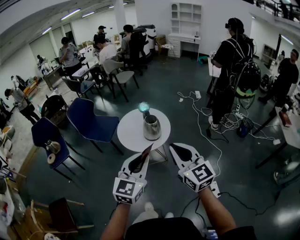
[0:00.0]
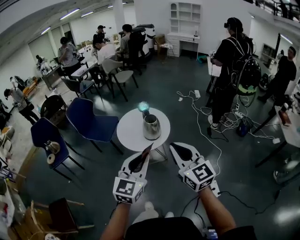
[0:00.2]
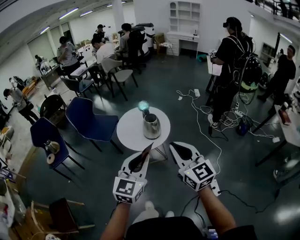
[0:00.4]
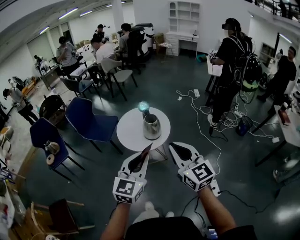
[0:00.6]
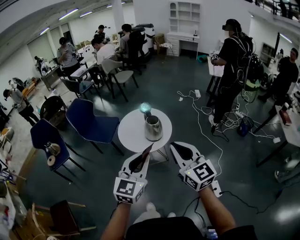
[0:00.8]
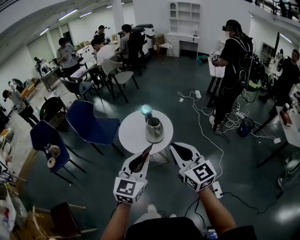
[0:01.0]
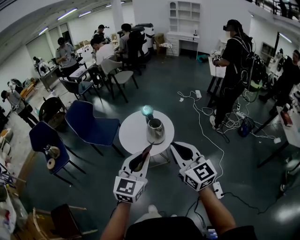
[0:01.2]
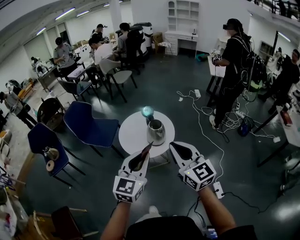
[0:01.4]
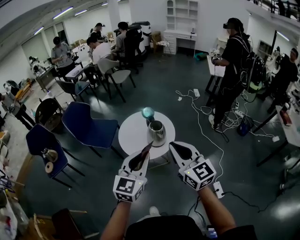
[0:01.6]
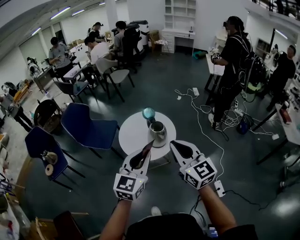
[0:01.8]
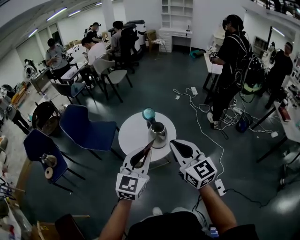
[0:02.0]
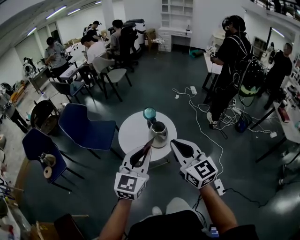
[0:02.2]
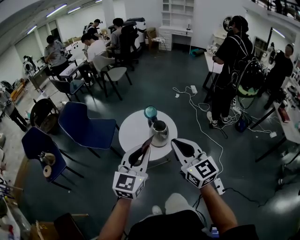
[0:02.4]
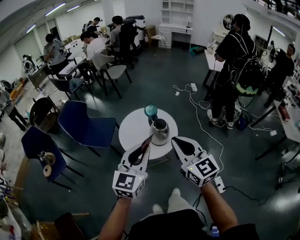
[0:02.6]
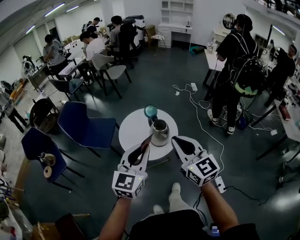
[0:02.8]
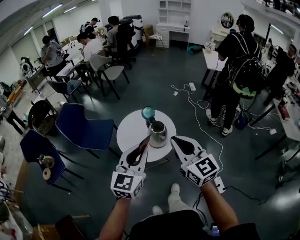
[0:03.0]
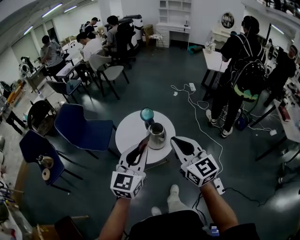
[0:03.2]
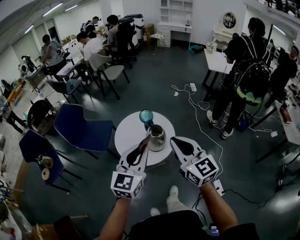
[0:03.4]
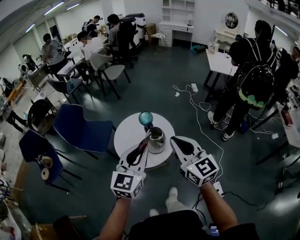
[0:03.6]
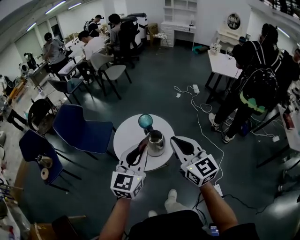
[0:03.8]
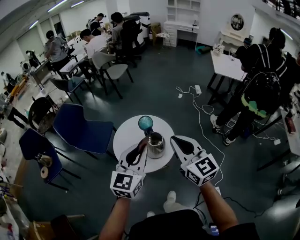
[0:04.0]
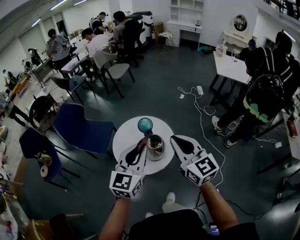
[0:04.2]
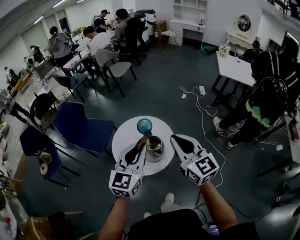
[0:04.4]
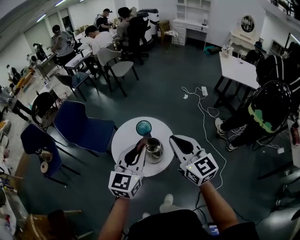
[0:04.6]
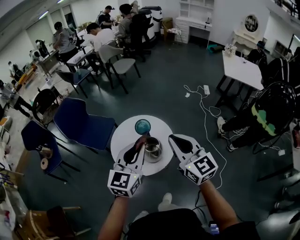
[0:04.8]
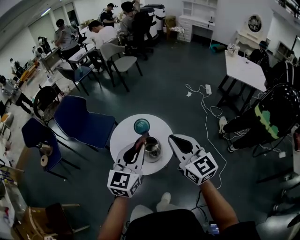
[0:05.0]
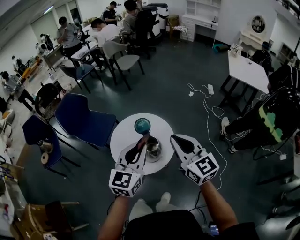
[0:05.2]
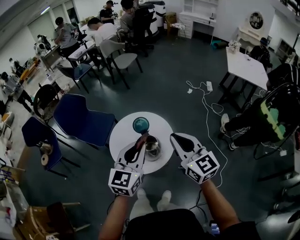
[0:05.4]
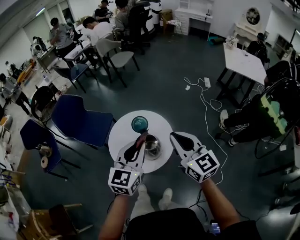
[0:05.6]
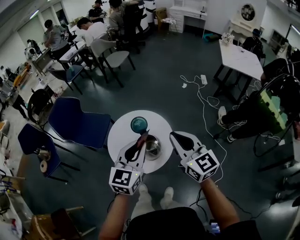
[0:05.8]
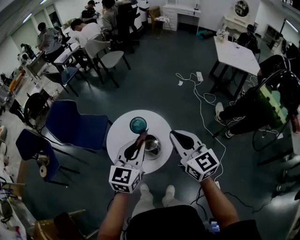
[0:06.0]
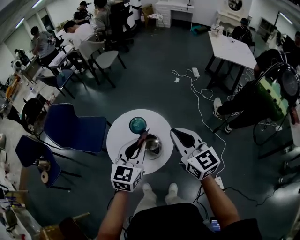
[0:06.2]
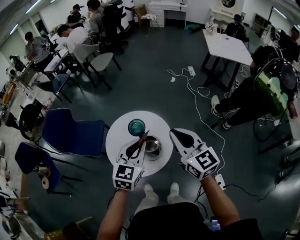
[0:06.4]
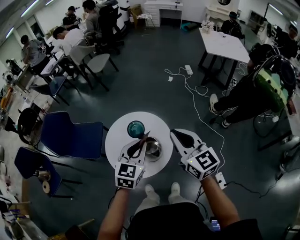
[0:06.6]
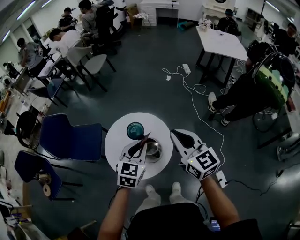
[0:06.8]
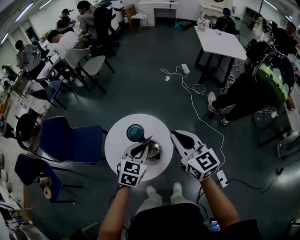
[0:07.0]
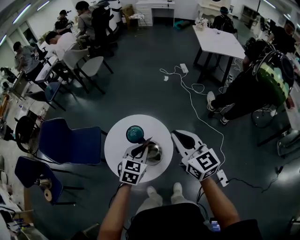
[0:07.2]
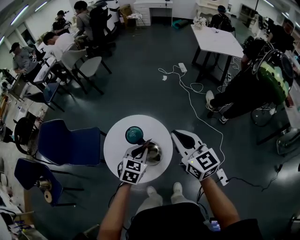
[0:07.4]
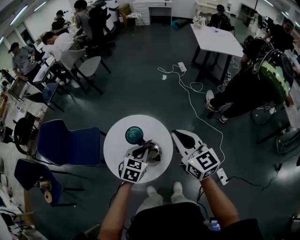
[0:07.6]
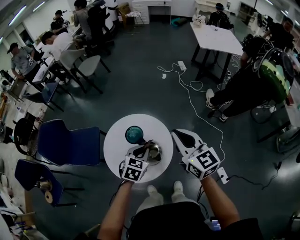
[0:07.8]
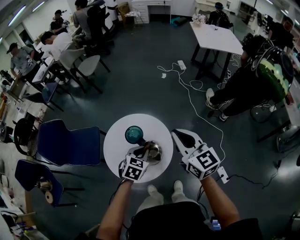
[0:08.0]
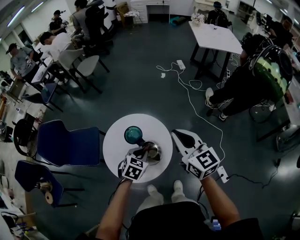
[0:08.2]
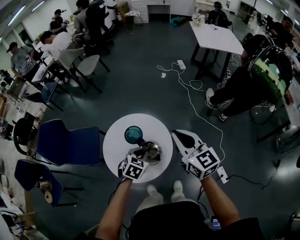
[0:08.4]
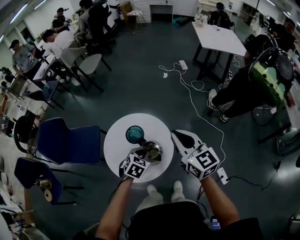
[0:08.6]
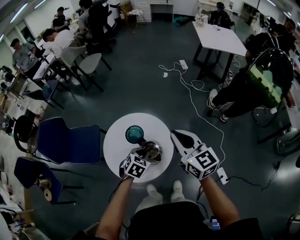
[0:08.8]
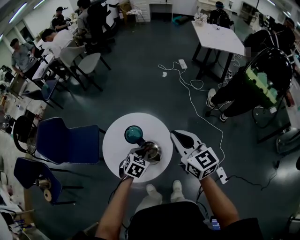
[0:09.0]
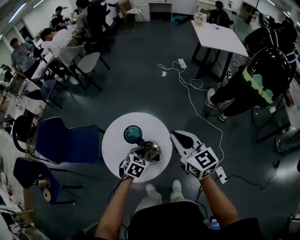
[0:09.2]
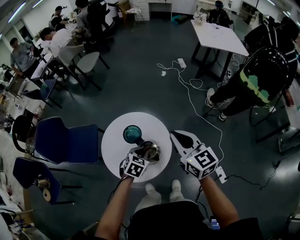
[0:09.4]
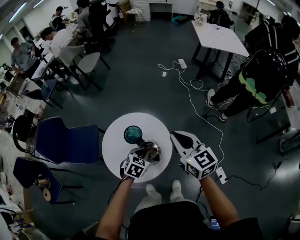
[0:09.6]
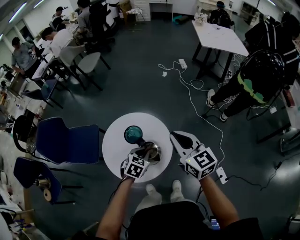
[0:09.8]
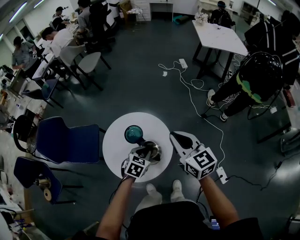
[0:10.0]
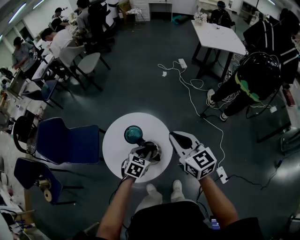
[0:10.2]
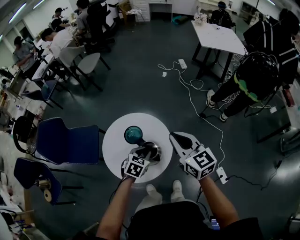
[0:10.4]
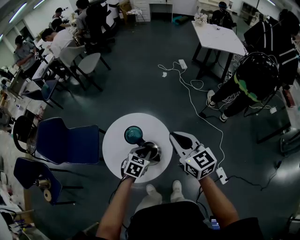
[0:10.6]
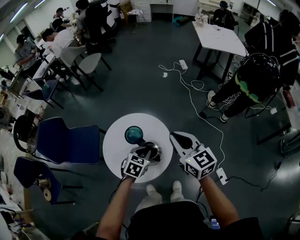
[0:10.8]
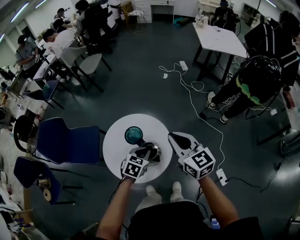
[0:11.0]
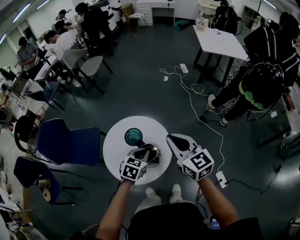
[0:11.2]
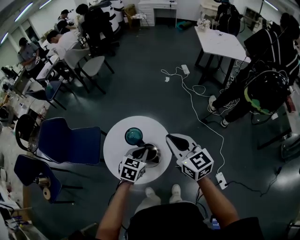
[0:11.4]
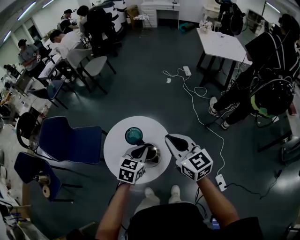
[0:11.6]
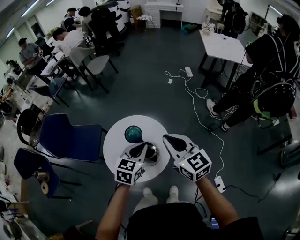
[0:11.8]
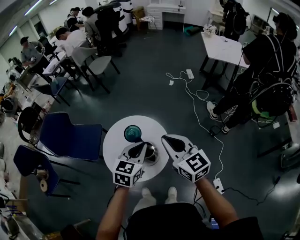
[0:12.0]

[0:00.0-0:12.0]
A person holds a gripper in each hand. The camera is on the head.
0:00.0 to 0:01.6: The two grippers go some 15 cm forward and to the left.
0:01.6 to 0:03.0: The two grippers go roughly 10 cm forward.
0:03.0 to 0:04.4: Both grippers travel together forward and to the right, about 20 cm.
0:04.4 to 0:06.0: The left gripper is displaced forward and downward by roughly 10 cm, while the right gripper is displaced forward by approximately 10 cm.
0:06.0 to 0:07.6: The left gripper moves downward and forward, some 20 cm, and turns by roughly 30 degrees. Meanwhile the right gripper goes some 5 cm forward.
0:07.6 to 0:09.0: The left gripper moves downward, about 5 cm.
0:09.0 to 0:10.4: There are only small adjustments of the grippers.
0:10.4 to 0:12.0: The right gripper goes some 5 cm upward; the left gripper travels upward by approximately 20 cm, and swivels about 30 degrees.

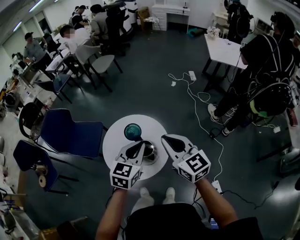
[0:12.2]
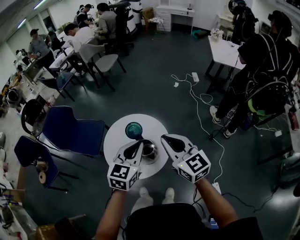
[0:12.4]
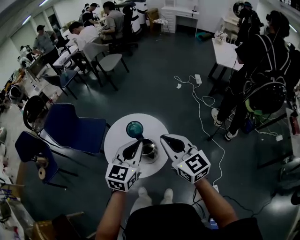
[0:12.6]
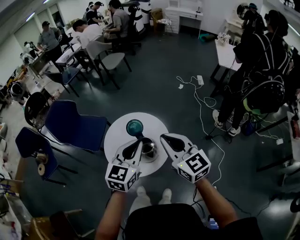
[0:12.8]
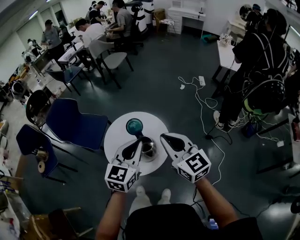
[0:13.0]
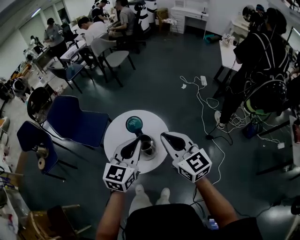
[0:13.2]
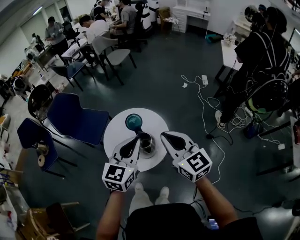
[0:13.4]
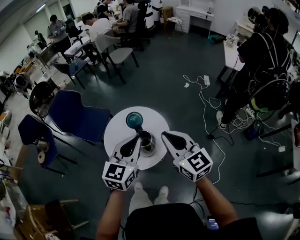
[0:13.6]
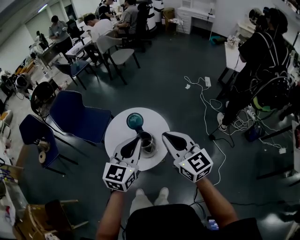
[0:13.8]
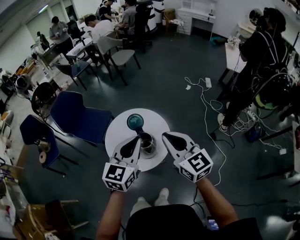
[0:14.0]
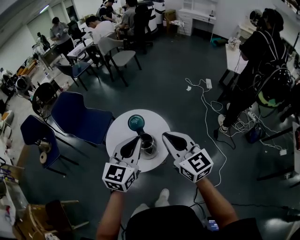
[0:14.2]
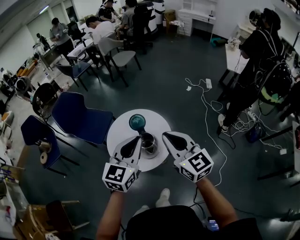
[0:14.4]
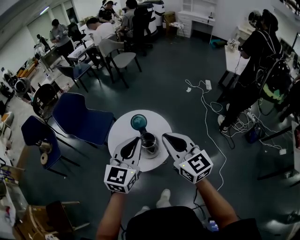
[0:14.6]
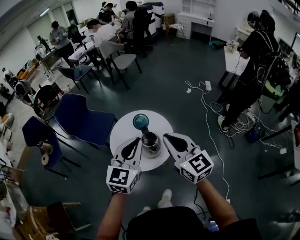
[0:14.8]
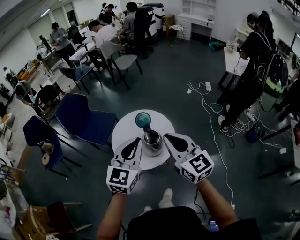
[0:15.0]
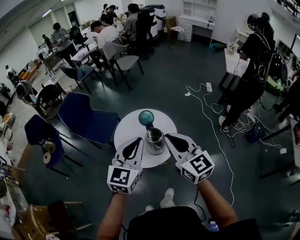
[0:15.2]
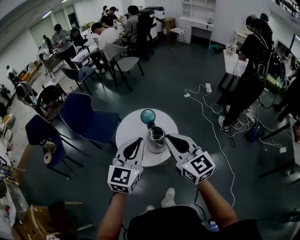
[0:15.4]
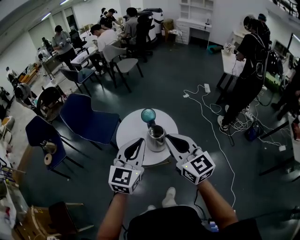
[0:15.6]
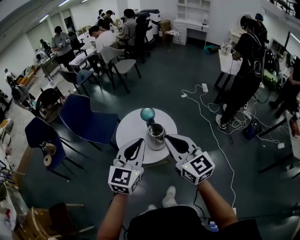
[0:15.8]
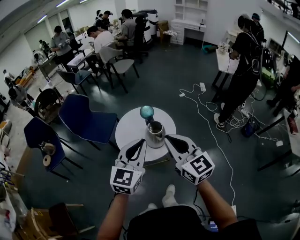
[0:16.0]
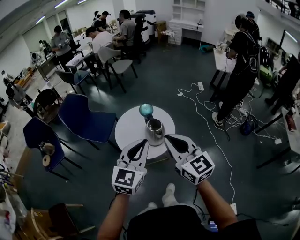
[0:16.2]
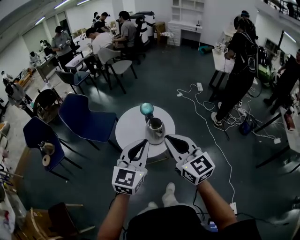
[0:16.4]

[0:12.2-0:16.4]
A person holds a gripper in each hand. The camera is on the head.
0:12.2 to 0:13.6: The right gripper shifts by roughly 5 cm, while the left gripper goes roughly 5 cm backward.
0:13.6 to 0:15.0: The two grippers go some 5 cm backward.
0:15.0 to 0:16.4: The left gripper goes some 15 cm backward, while the right gripper moves backward and to the left, about 20 cm.

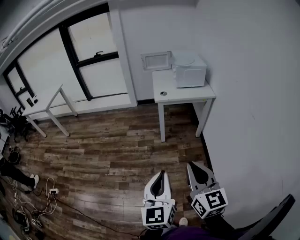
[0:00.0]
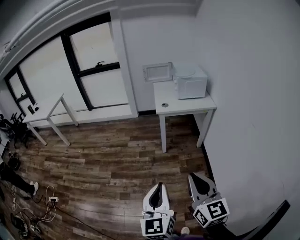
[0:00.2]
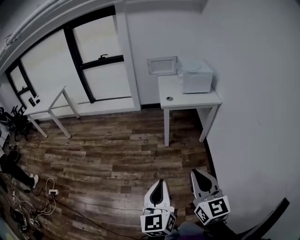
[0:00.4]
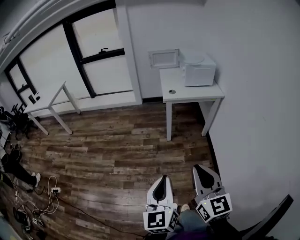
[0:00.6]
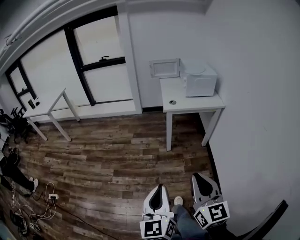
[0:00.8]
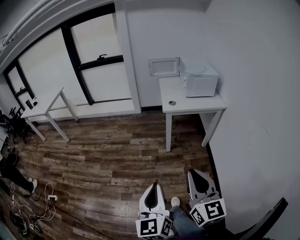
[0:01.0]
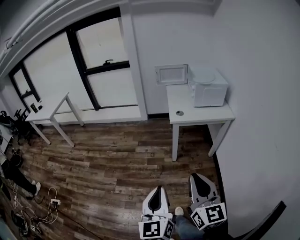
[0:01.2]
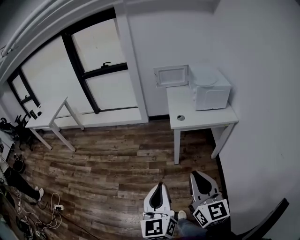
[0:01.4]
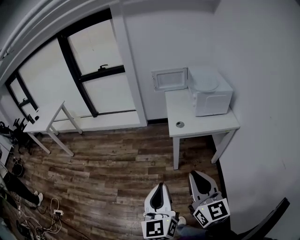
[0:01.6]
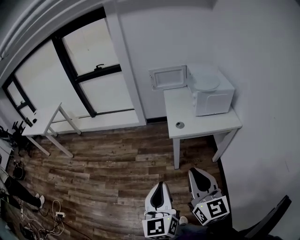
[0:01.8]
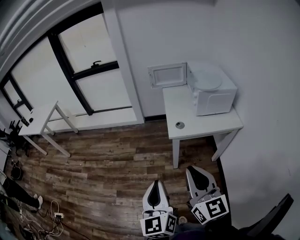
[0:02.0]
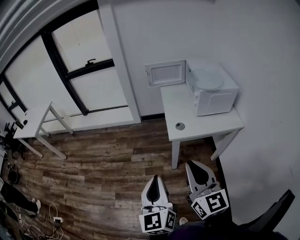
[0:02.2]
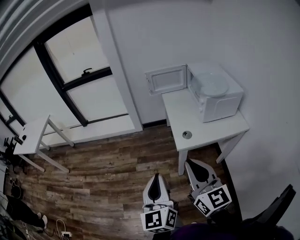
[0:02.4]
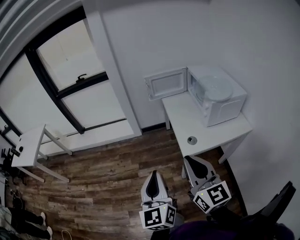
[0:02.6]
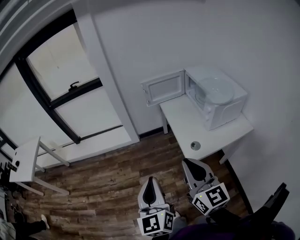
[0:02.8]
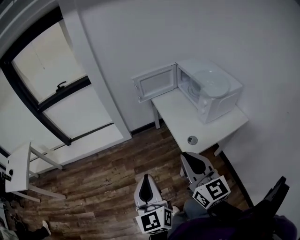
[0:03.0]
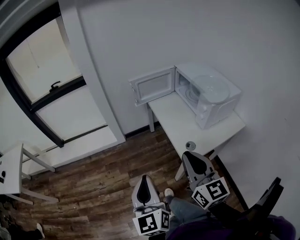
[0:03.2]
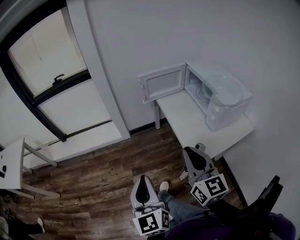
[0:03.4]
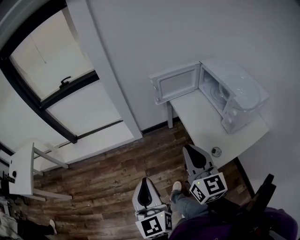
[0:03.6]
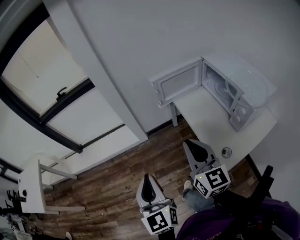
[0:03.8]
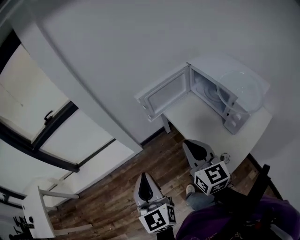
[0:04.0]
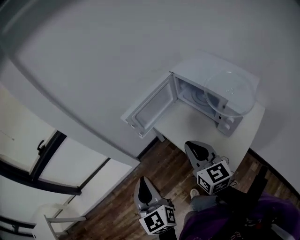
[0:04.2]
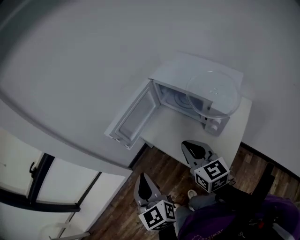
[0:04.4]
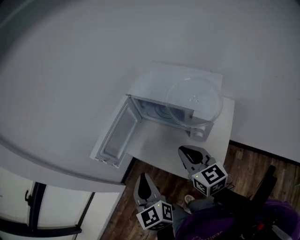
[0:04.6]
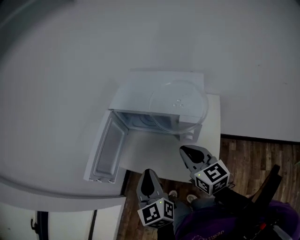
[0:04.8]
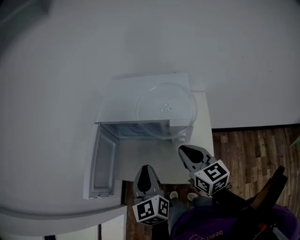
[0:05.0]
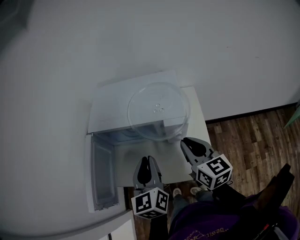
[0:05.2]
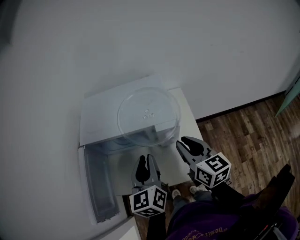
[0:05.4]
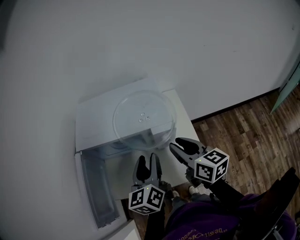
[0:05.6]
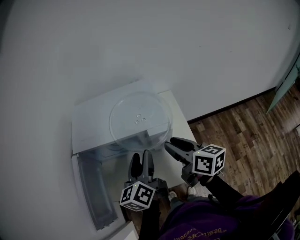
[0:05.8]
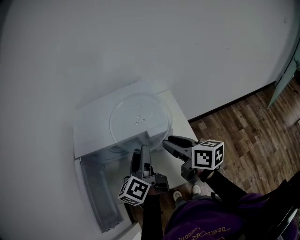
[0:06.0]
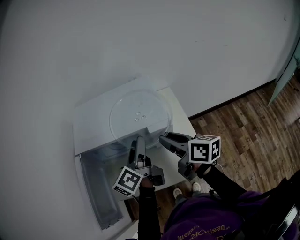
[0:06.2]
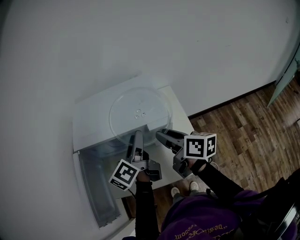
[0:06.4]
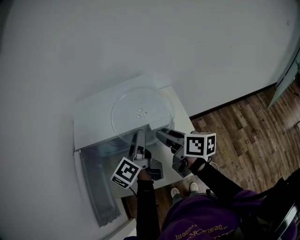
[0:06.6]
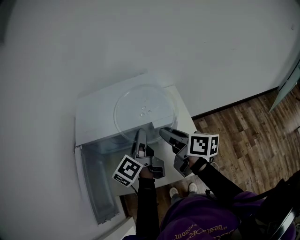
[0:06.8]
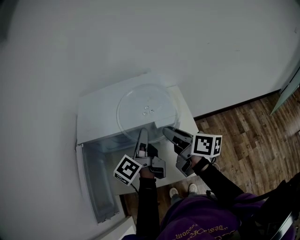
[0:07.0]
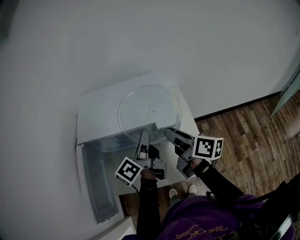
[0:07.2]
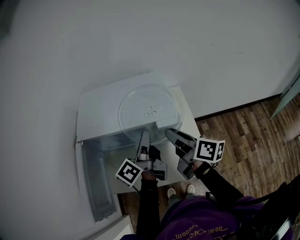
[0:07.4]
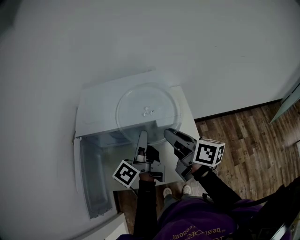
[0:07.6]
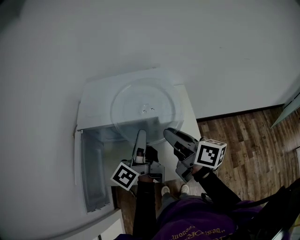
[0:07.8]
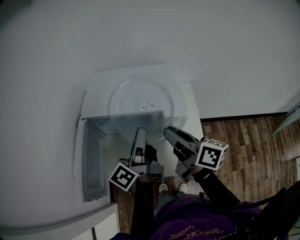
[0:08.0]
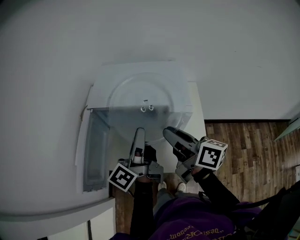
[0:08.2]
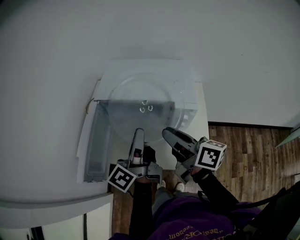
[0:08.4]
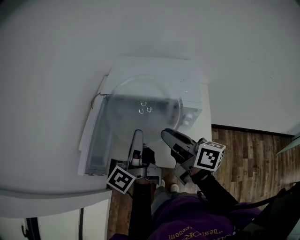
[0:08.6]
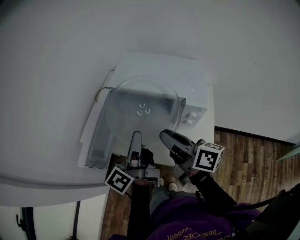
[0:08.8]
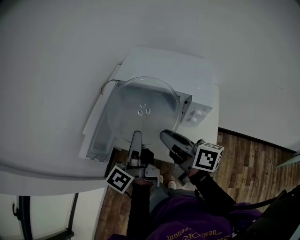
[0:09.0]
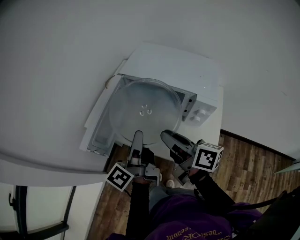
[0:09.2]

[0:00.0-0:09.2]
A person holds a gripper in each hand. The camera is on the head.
0:00.0 to 0:01.6: Both grippers travel together forward, approximately 25 cm.
0:01.6 to 0:03.0: The two grippers go about 40 cm forward.
0:03.0 to 0:04.6: The right gripper moves about 35 cm, and changes its angle by about 40 degrees. Meanwhile the left gripper moves roughly 40 cm, and changes its angle by roughly 40 degrees.
0:04.6 to 0:06.2: The left gripper shifts by approximately 30 cm, rotates about 70 degrees, and opens its fingers. The right gripper shifts by about 15 cm, twists some 40 degrees clockwise, seen from behind, and opens.
0:06.2 to 0:07.6: The left gripper swivels approximately 20 degrees, and closes its fingers.
0:07.6 to 0:09.2: The left gripper ends up about 20 cm from where it was, and rotates roughly 30 degrees. Meanwhile the right gripper changes place by roughly 15 cm, and changes its angle by about 30 degrees.
